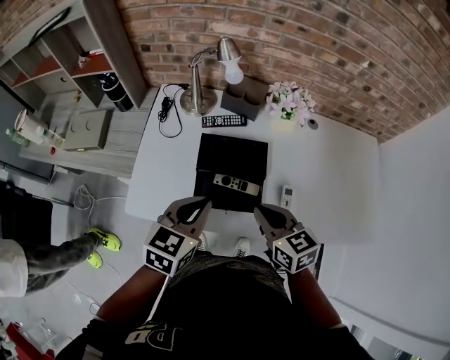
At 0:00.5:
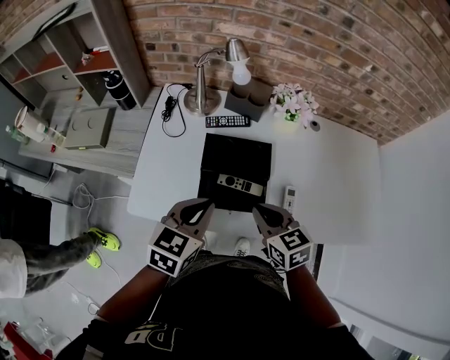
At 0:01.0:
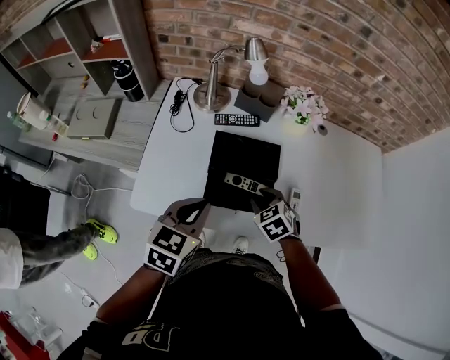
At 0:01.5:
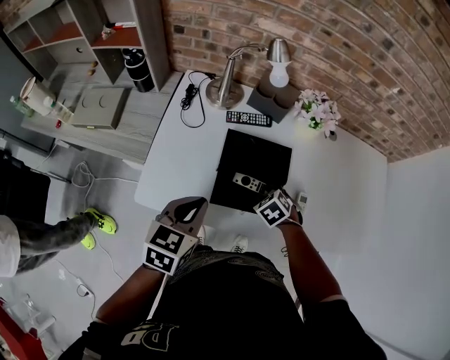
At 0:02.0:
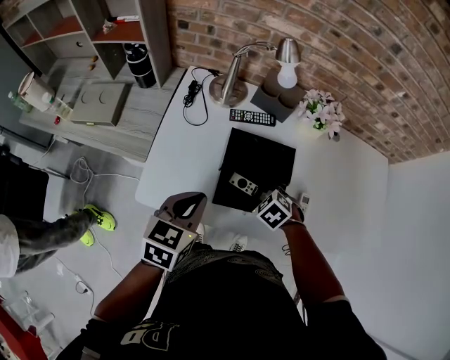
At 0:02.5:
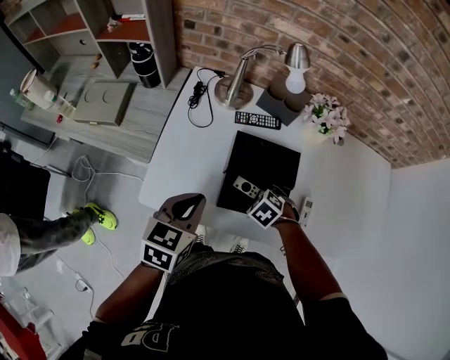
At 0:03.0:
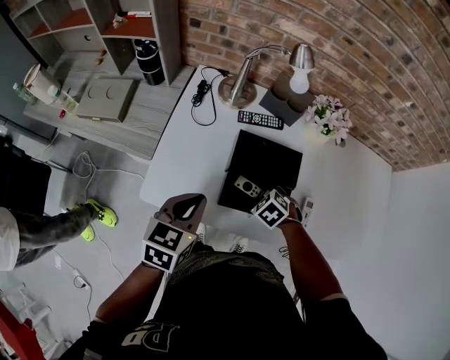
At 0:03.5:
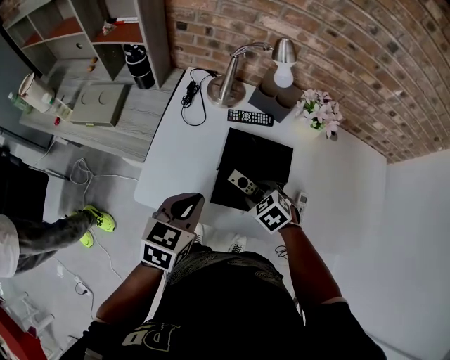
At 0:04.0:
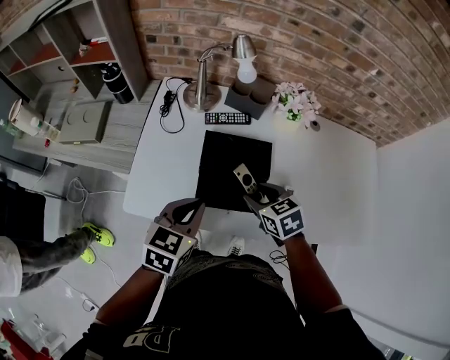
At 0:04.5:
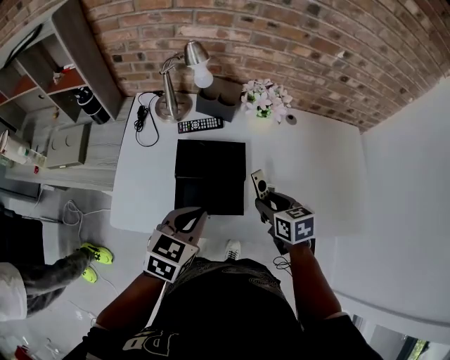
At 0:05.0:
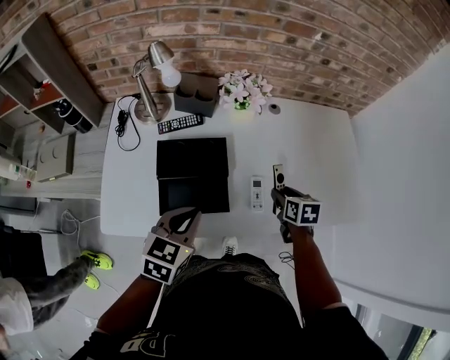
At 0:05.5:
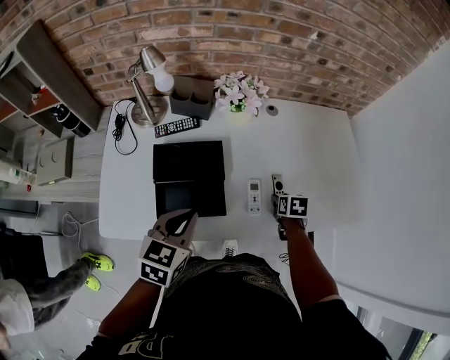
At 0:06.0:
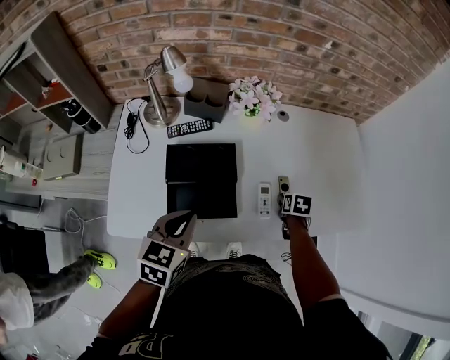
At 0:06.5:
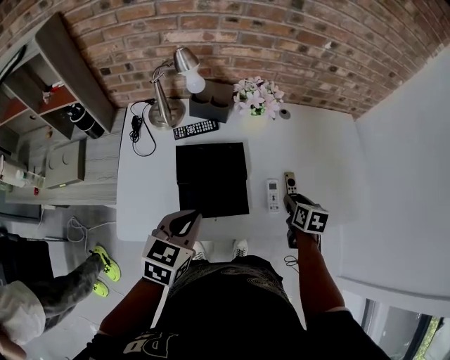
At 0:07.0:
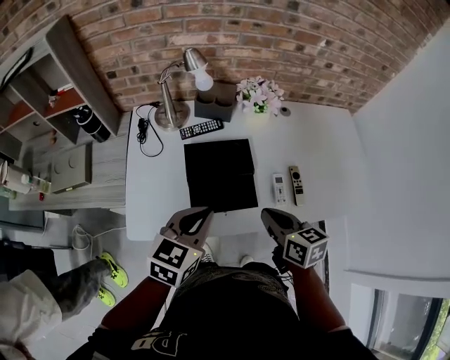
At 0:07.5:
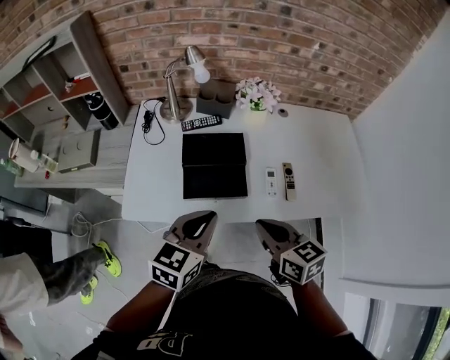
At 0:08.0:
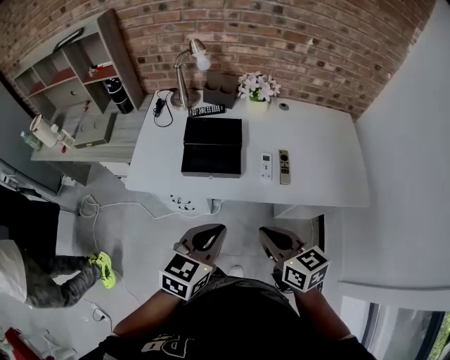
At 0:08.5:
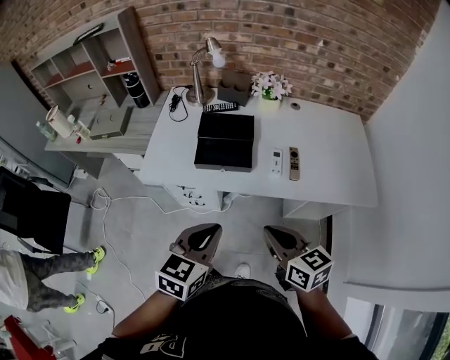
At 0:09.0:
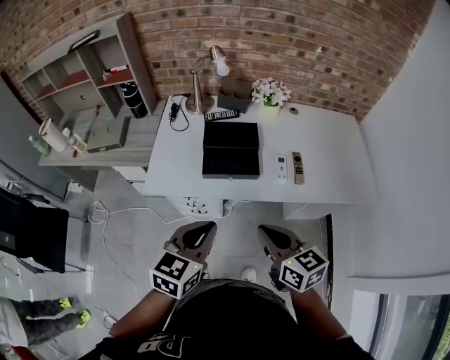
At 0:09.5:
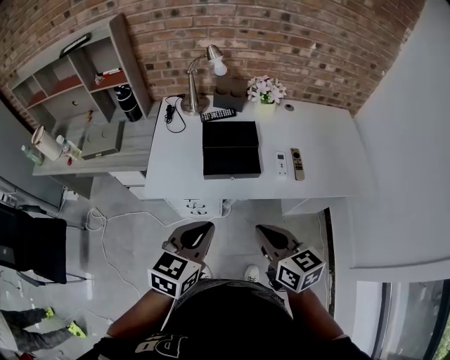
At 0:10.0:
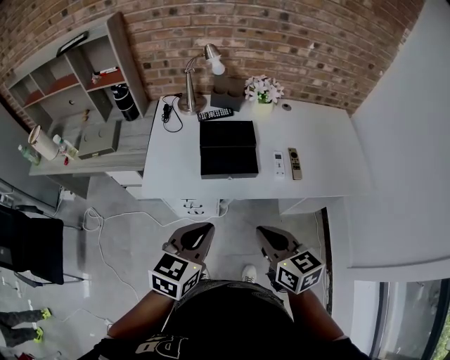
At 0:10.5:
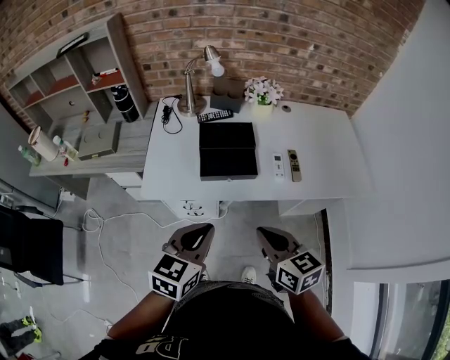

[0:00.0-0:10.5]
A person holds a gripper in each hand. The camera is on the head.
0:00.0 to 0:02.0: The left gripper goes some 10 cm to the left. Meanwhile the right gripper heads downward, covering approximately 15 cm, tips its fingers downward by roughly 40 degrees, and opens up.
0:02.0 to 0:04.0: The right gripper is displaced upward by roughly 10 cm, and turns by some 40 degrees. The left gripper ends up about 5 cm from where it was.
0:04.0 to 0:06.5: The right gripper goes downward and returns, approximately 15 cm each way, and swivels roughly 50 degrees.
0:06.5 to 0:08.5: The right gripper changes place by approximately 35 cm, swivels some 50 degrees, and closes. Meanwhile the left gripper moves roughly 30 cm.
0:08.5 to 0:10.5: The grippers both shift to the left by approximately 10 cm.

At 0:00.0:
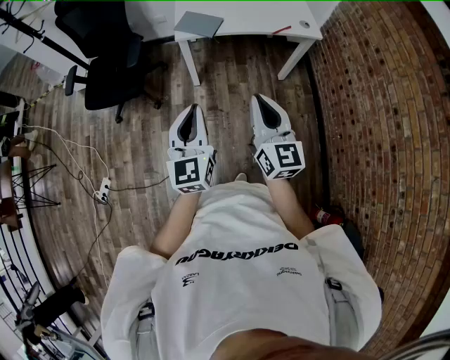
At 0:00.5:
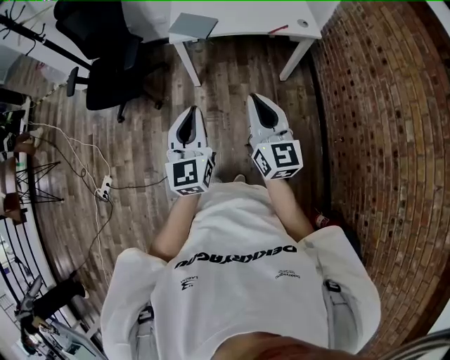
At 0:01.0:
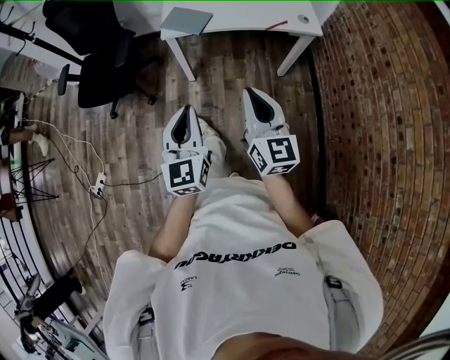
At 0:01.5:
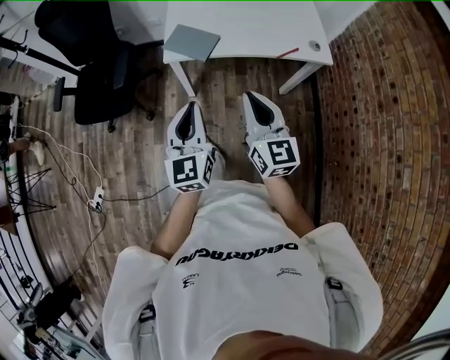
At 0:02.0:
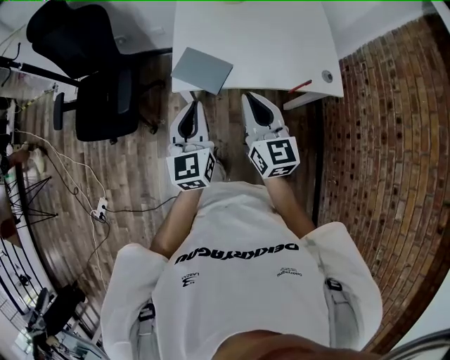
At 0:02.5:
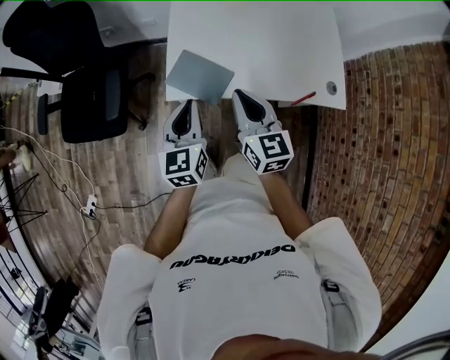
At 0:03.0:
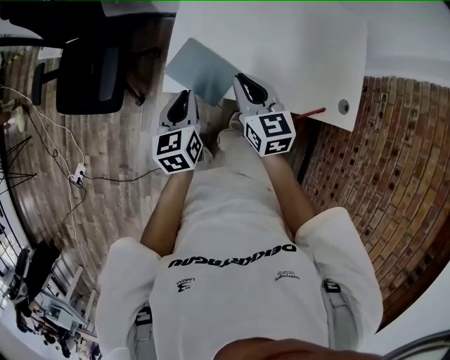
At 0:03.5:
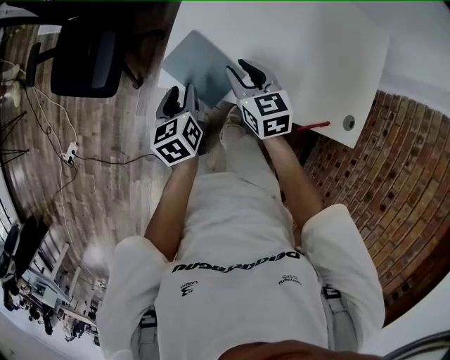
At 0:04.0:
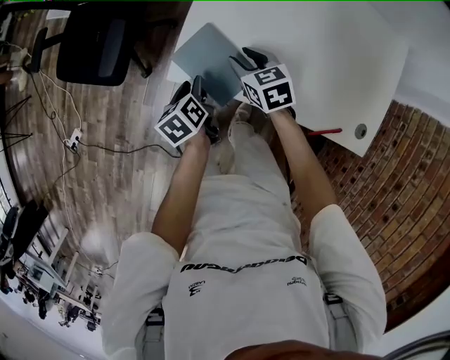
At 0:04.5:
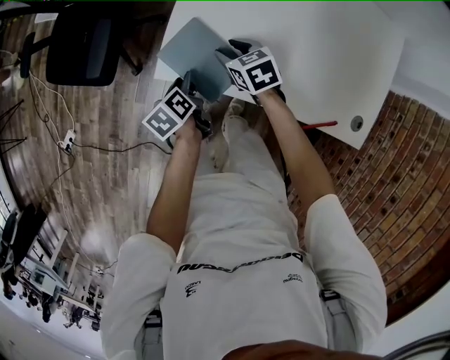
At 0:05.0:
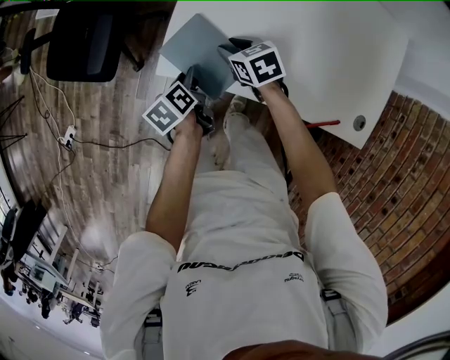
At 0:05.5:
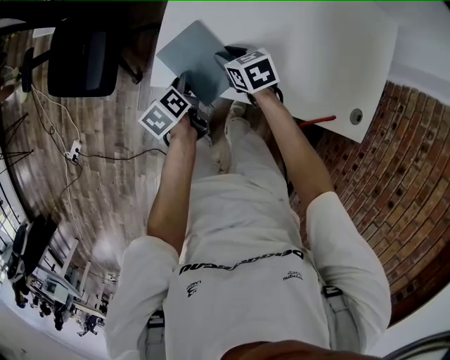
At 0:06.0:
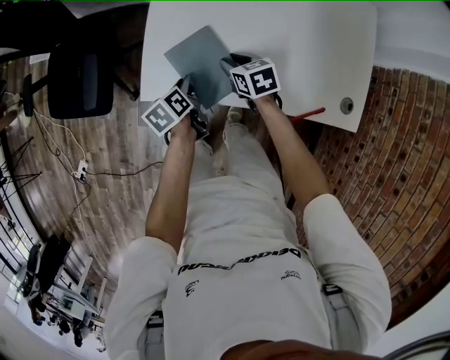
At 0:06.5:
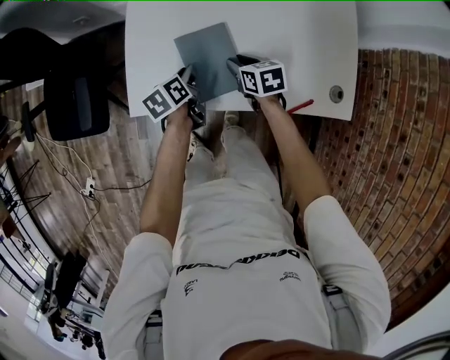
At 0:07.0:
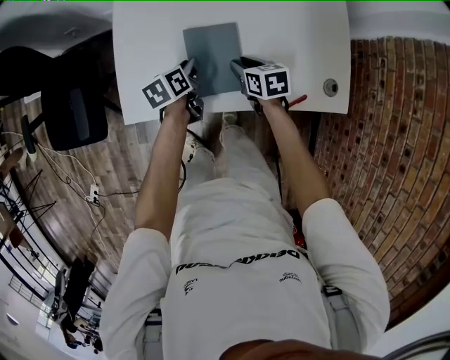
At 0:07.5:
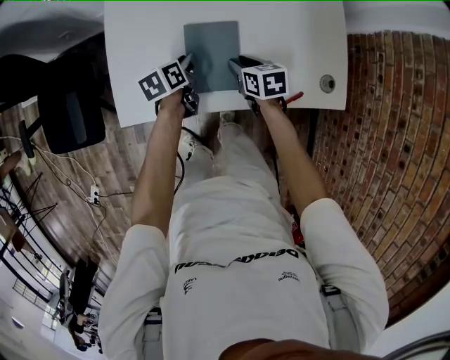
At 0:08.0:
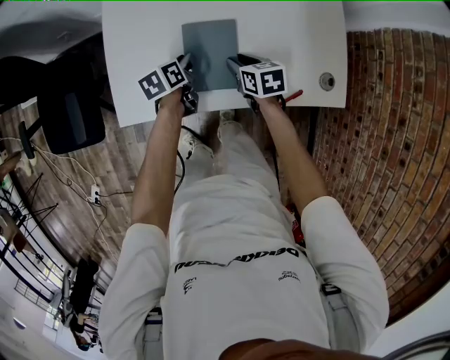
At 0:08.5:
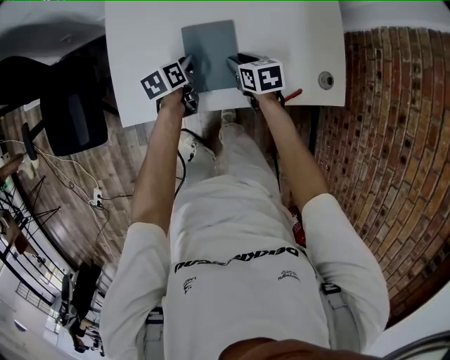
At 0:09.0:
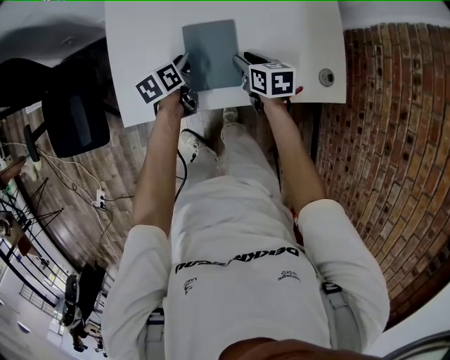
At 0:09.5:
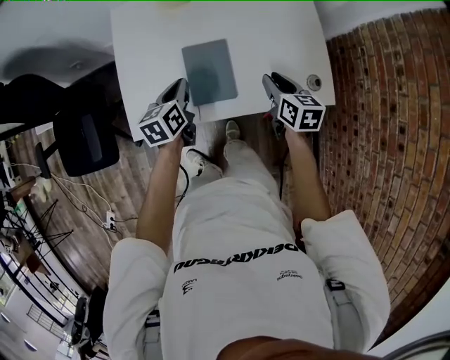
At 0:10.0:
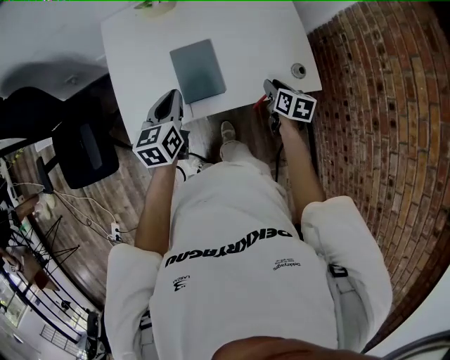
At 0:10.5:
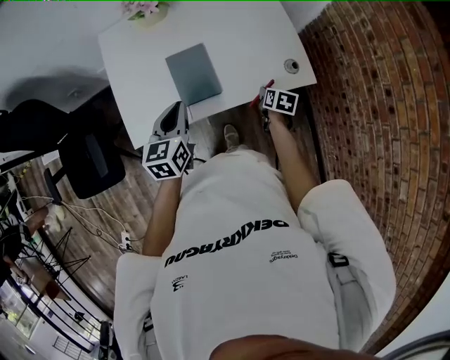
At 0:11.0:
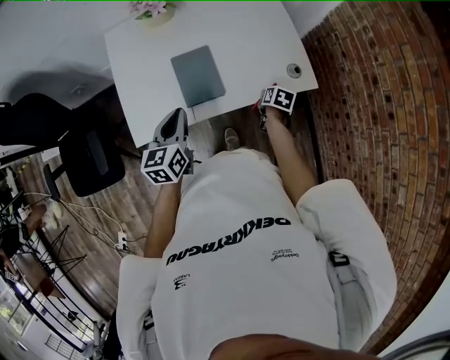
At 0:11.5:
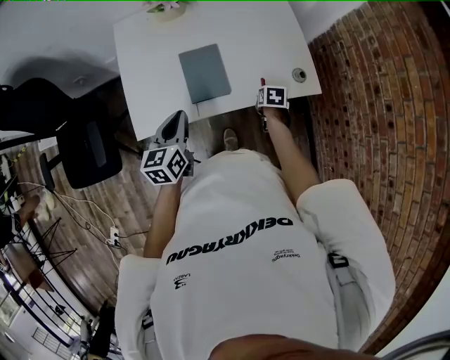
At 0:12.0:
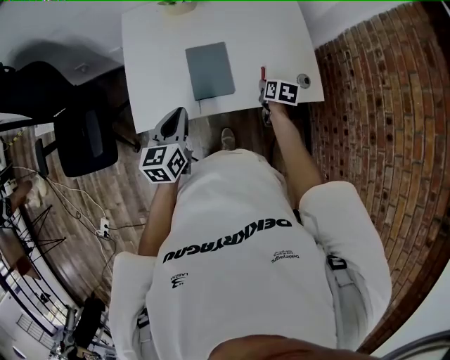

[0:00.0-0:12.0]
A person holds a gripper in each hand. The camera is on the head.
0:00.0 to 0:02.0: Both grippers are carried forward, about 40 cm.
0:02.0 to 0:04.0: Both grippers move downward, about 30 cm. The right gripper points its fingers roughly 40 degrees further downward, and opens its fingers, while the left gripper tilts its fingers about 40 degrees downward, and opens its fingers.
0:04.0 to 0:06.0: Both grippers travel together to the right, roughly 10 cm.
0:06.0 to 0:08.0: The left gripper is displaced to the right and forward by some 20 cm, and turns by some 30 degrees. Meanwhile the right gripper shifts approximately 15 cm to the right, and turns by about 20 degrees.
0:08.0 to 0:10.0: The left gripper is displaced upward and backward by some 25 cm, rotates approximately 30 degrees, and closes up. Meanwhile the right gripper goes some 20 cm to the right, backward and upward, and turns by about 30 degrees.
0:10.0 to 0:12.0: The left gripper travels backward by some 10 cm.

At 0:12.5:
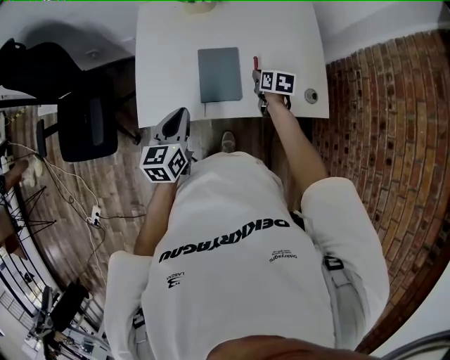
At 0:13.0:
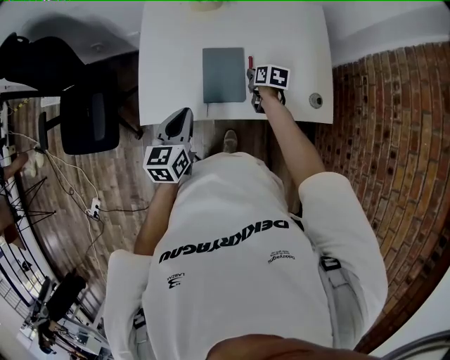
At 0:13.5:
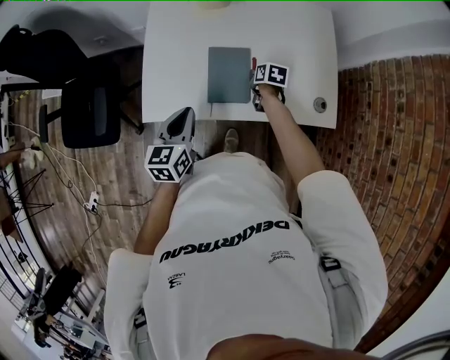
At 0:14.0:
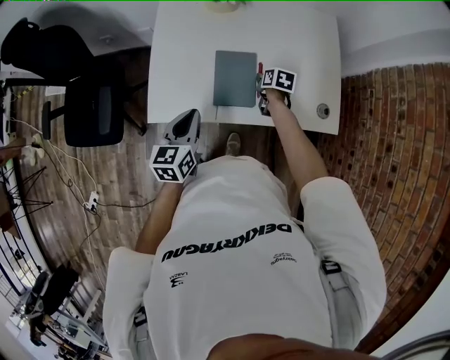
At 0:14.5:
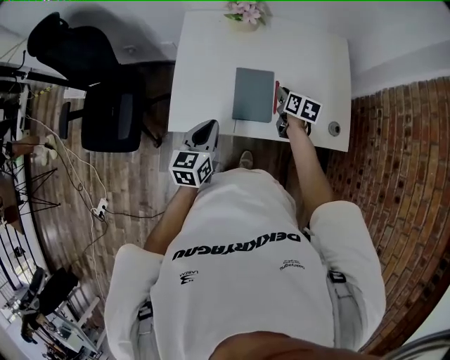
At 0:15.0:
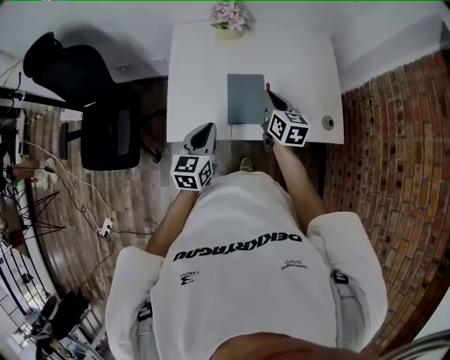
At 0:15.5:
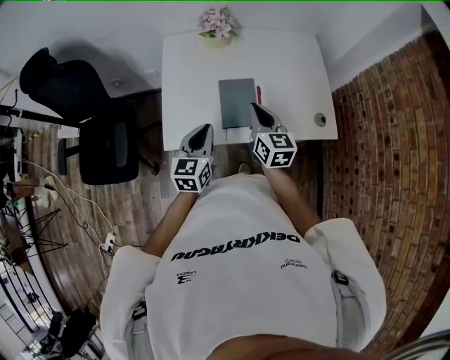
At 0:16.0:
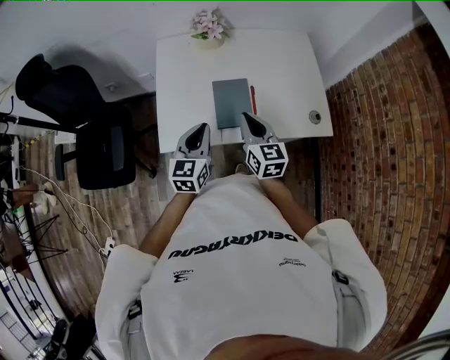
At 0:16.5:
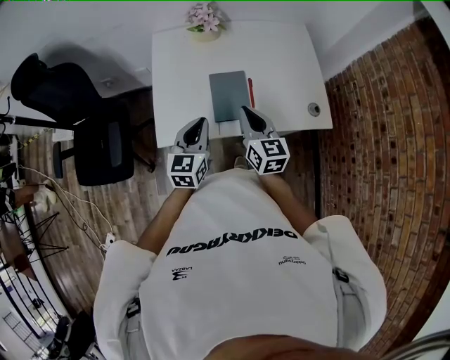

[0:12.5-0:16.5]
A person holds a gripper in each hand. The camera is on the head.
0:12.5 to 0:14.5: The right gripper shifts by approximately 5 cm.
0:14.5 to 0:16.5: The right gripper heads upward, backward and to the left, covering roughly 20 cm, and rotates approximately 30 degrees.
